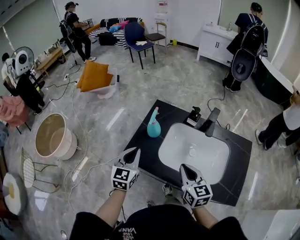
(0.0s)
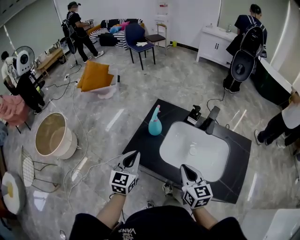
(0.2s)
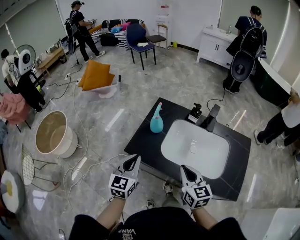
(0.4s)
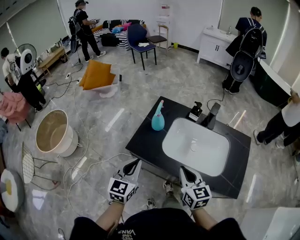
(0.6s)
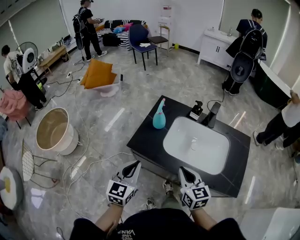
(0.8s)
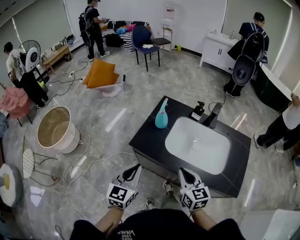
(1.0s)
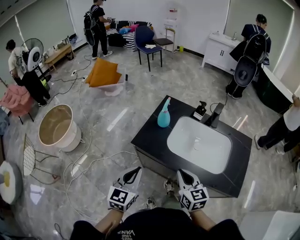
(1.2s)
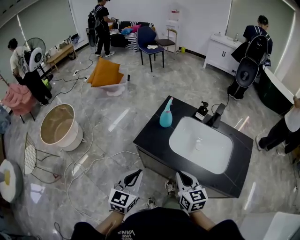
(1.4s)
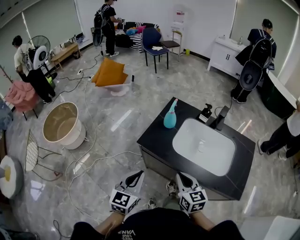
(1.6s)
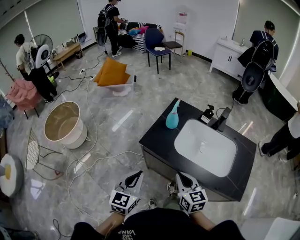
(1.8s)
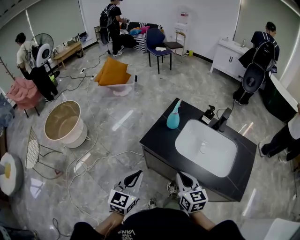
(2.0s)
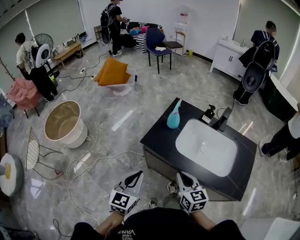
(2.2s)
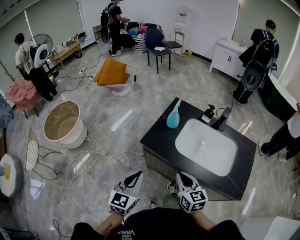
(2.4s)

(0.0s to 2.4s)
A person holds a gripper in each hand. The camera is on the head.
0.0s - 1.2s: The right gripper goes some 10 cm backward and to the left. The left gripper shifts about 20 cm backward.
1.2s - 2.4s: There are only small adjustments of the grippers.

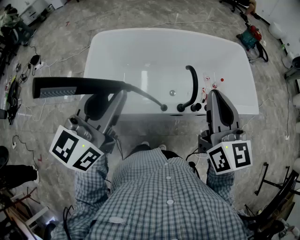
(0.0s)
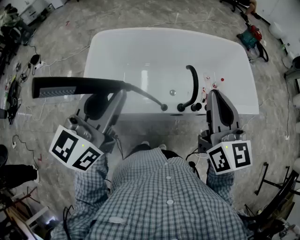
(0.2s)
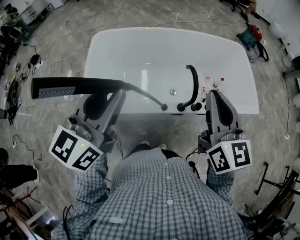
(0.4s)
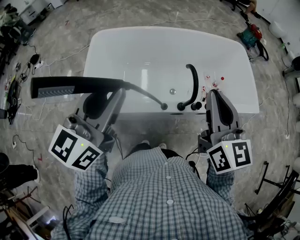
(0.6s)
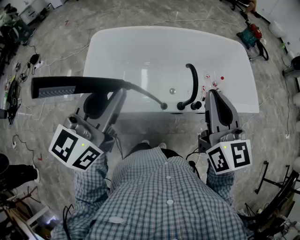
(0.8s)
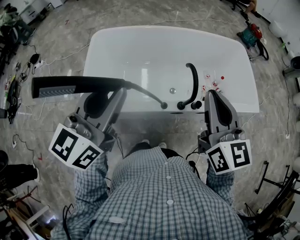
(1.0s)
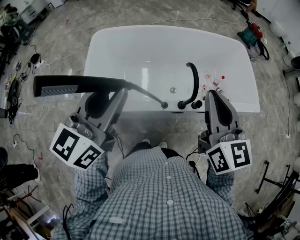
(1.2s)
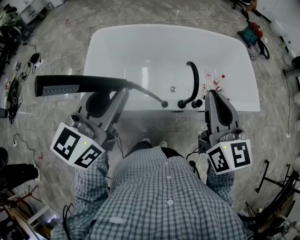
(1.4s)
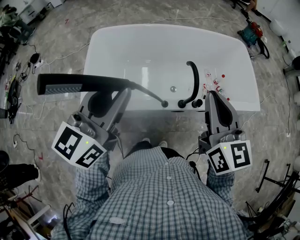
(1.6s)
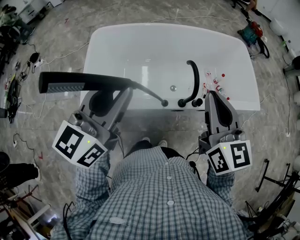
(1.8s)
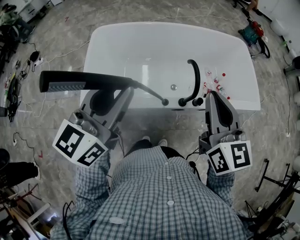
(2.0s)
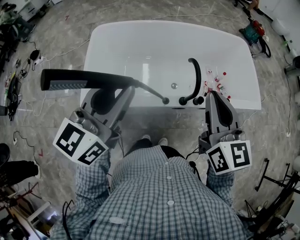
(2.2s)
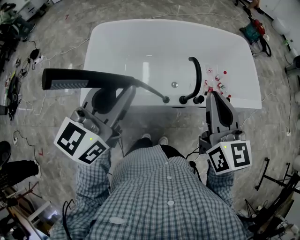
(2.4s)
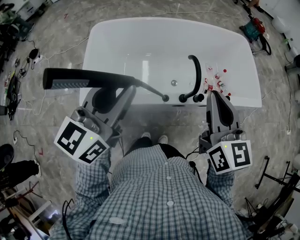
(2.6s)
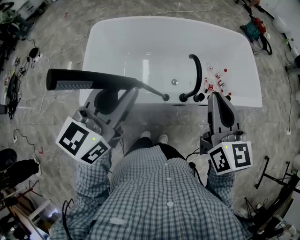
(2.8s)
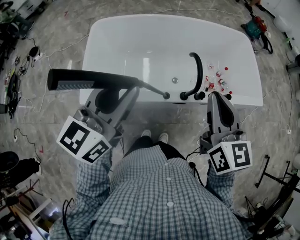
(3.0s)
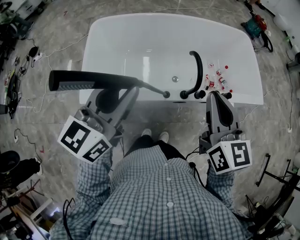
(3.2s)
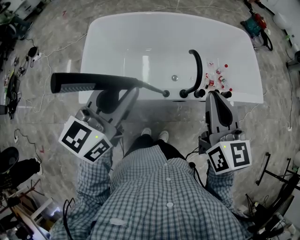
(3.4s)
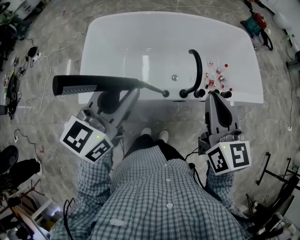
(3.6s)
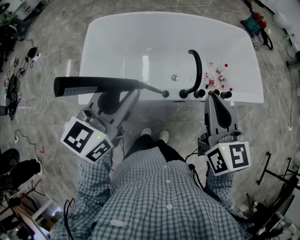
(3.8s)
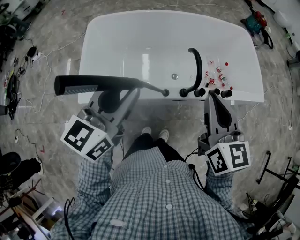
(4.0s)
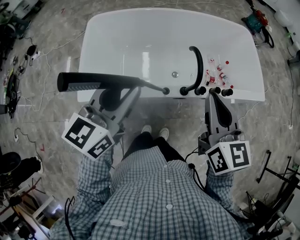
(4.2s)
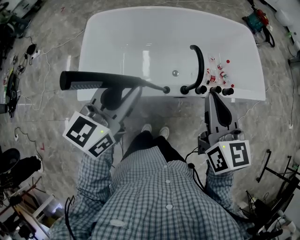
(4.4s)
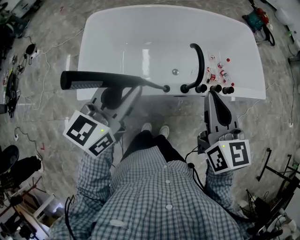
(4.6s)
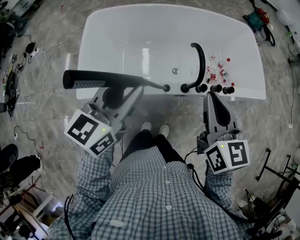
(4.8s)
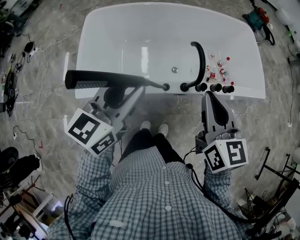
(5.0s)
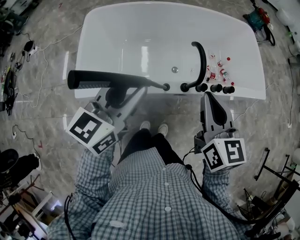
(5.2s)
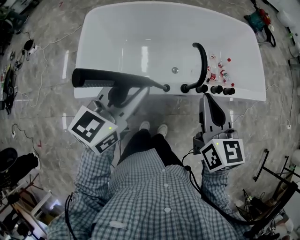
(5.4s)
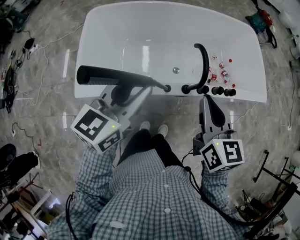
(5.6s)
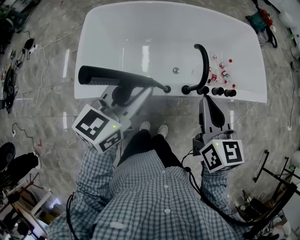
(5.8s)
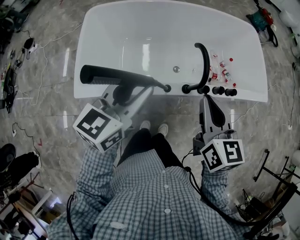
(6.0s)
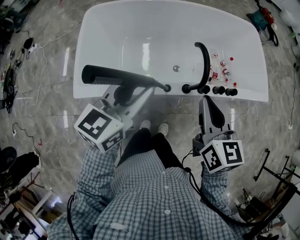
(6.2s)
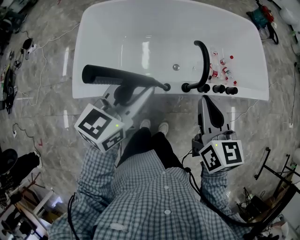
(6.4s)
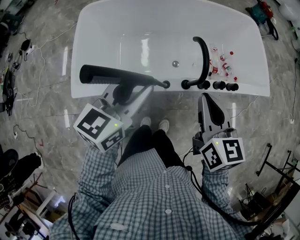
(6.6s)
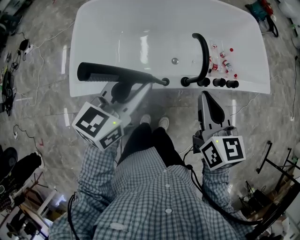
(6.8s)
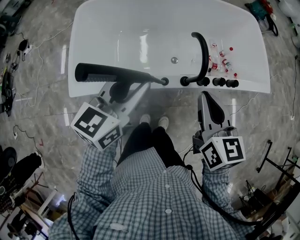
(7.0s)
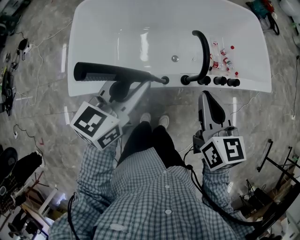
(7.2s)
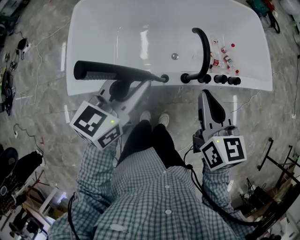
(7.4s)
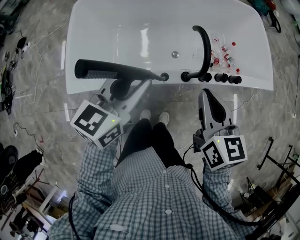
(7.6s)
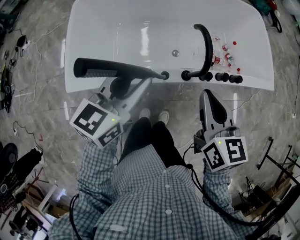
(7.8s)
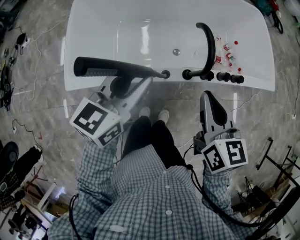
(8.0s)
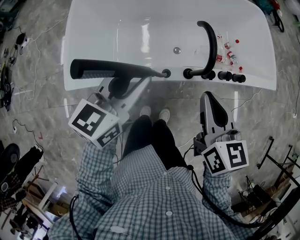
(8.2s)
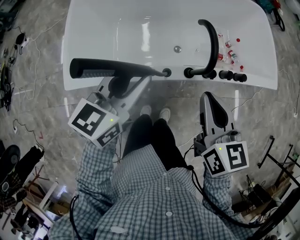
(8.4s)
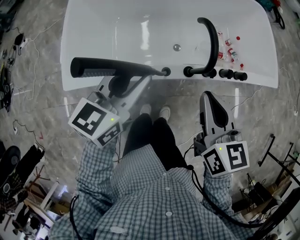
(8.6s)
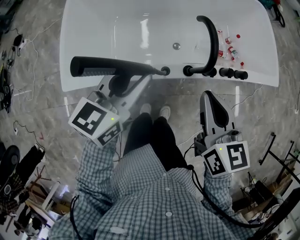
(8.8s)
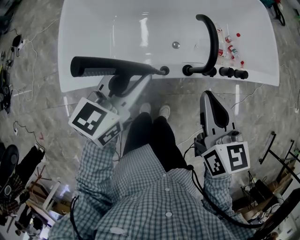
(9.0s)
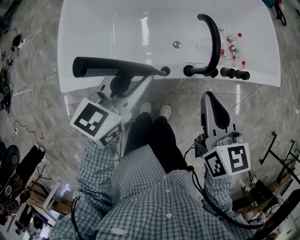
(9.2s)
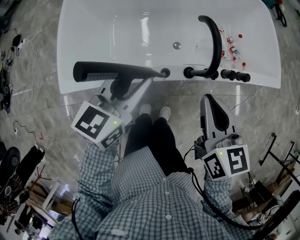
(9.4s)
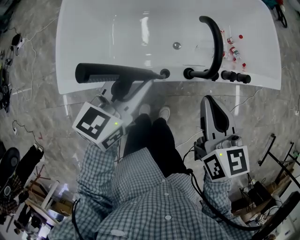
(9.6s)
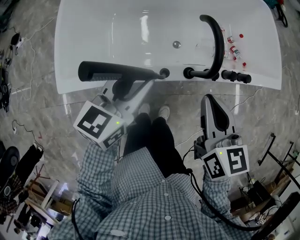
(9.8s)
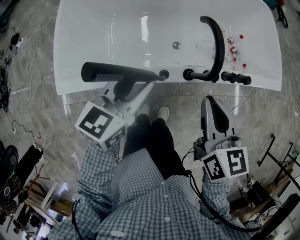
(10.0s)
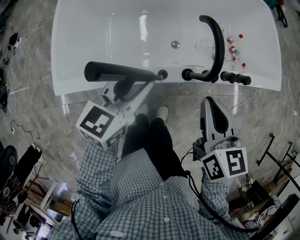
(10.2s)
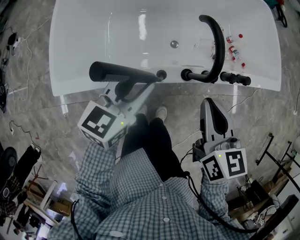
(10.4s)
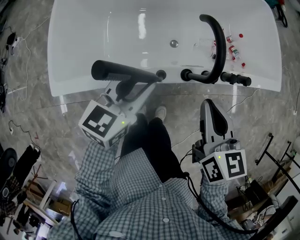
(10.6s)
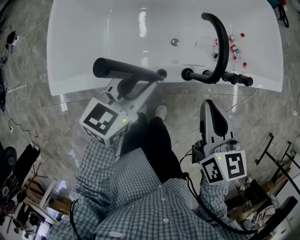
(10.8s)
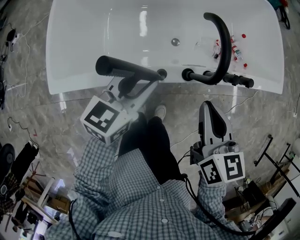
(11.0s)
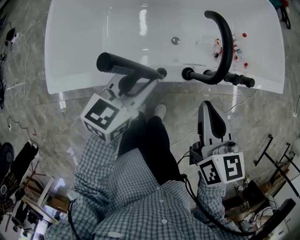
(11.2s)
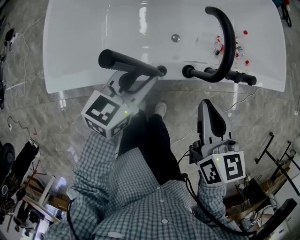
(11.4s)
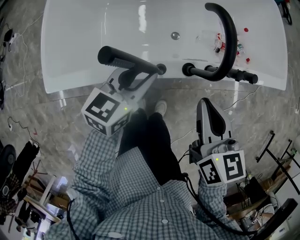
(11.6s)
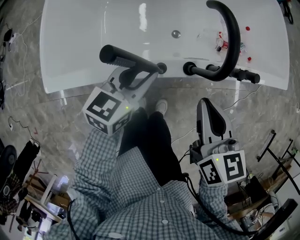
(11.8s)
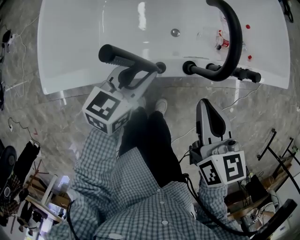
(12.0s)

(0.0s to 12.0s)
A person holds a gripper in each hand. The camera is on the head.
0.0s - 3.0s: The grippers move only a little.
3.0s - 4.4s: The left gripper is displaced downward by about 5 cm.
4.4s - 6.0s: Both grippers travel together downward, about 5 cm.
6.0s - 7.6s: The left gripper goes approximately 5 cm downward. Meanwhile the right gripper changes place by roughly 5 cm.
7.6s - 9.0s: The left gripper shifts approximately 5 cm downward.
9.0s - 10.4s: The right gripper changes place by approximately 5 cm. Meanwhile the left gripper goes some 5 cm downward.
10.4s - 12.0s: The left gripper goes roughly 10 cm downward. The right gripper travels downward by roughly 5 cm.

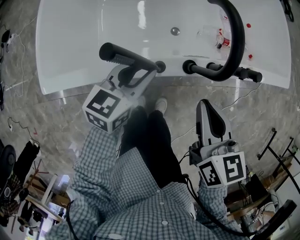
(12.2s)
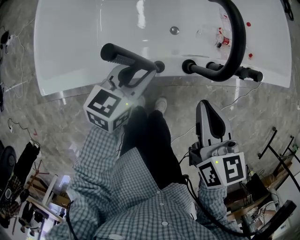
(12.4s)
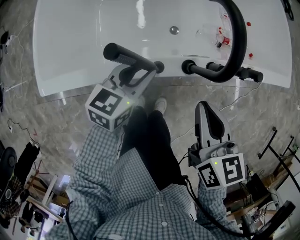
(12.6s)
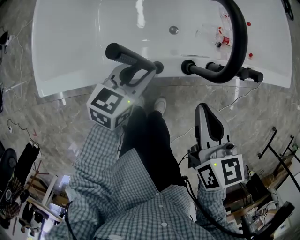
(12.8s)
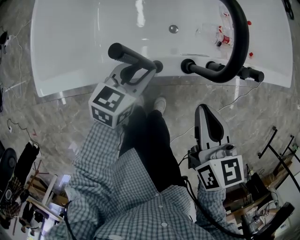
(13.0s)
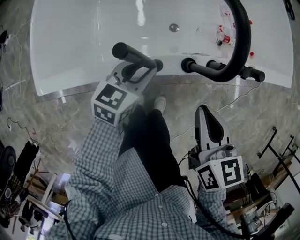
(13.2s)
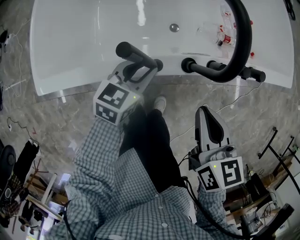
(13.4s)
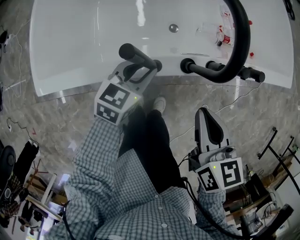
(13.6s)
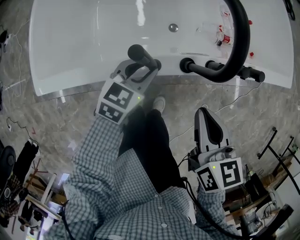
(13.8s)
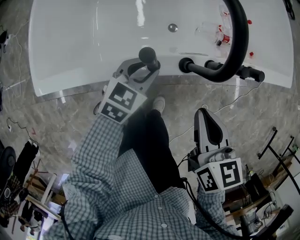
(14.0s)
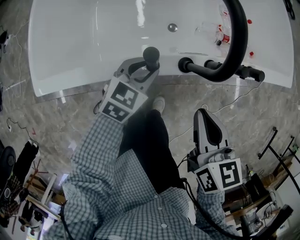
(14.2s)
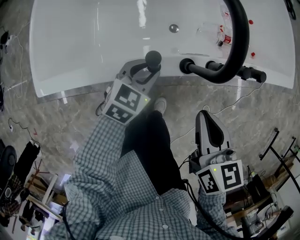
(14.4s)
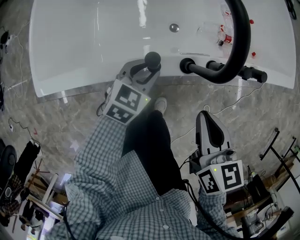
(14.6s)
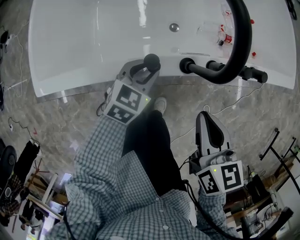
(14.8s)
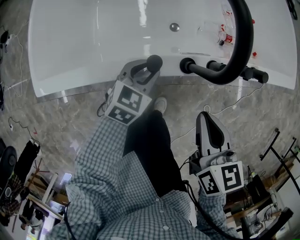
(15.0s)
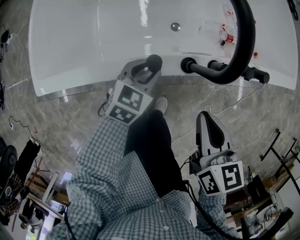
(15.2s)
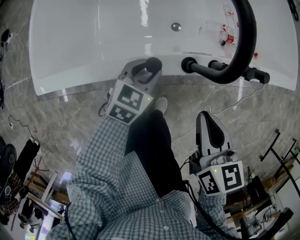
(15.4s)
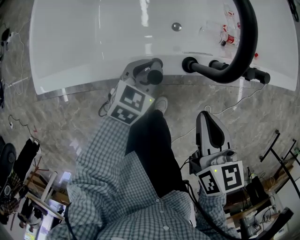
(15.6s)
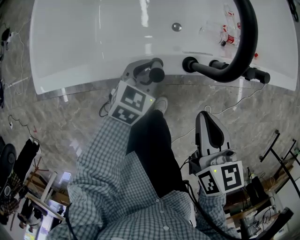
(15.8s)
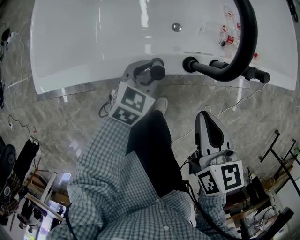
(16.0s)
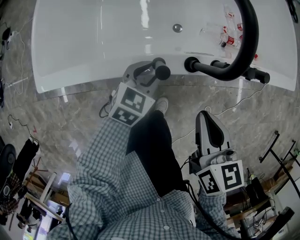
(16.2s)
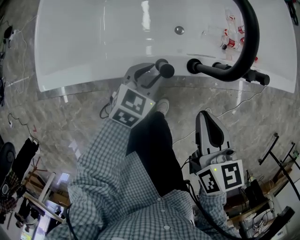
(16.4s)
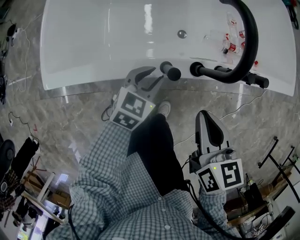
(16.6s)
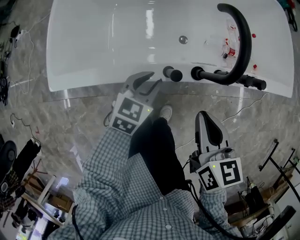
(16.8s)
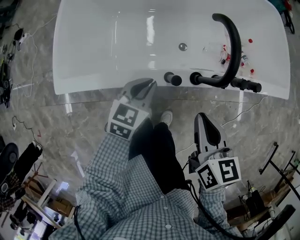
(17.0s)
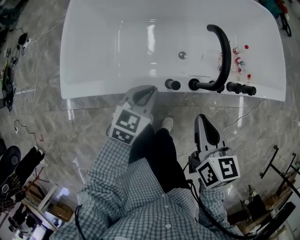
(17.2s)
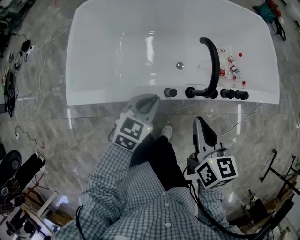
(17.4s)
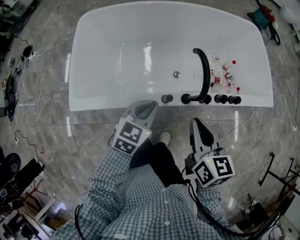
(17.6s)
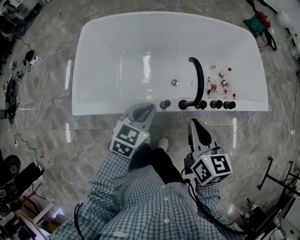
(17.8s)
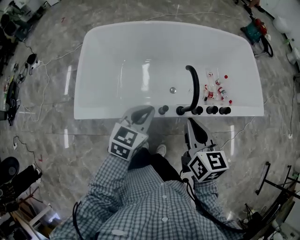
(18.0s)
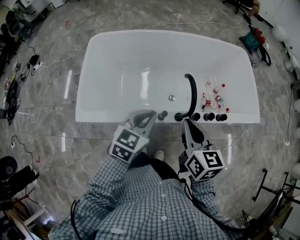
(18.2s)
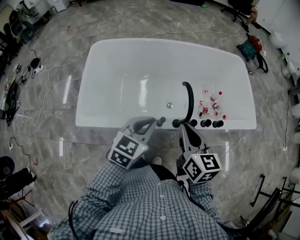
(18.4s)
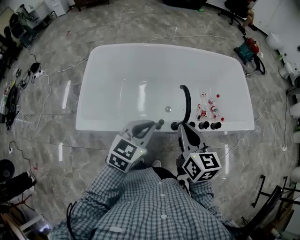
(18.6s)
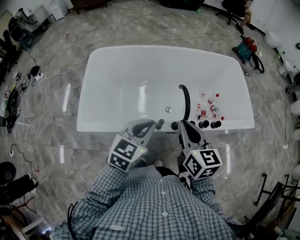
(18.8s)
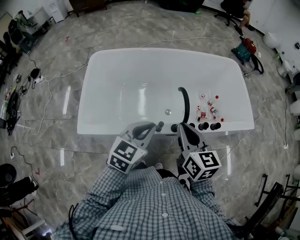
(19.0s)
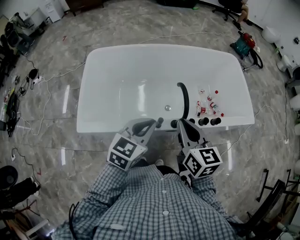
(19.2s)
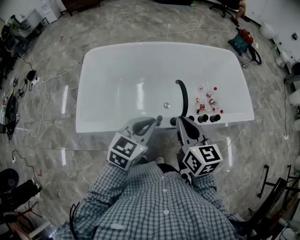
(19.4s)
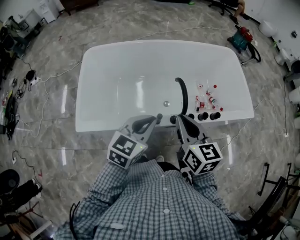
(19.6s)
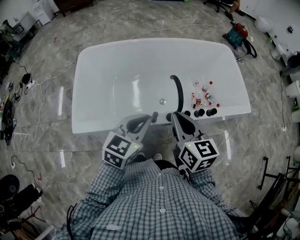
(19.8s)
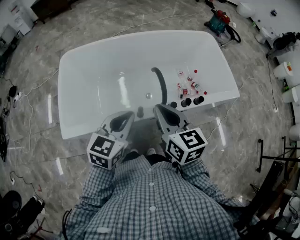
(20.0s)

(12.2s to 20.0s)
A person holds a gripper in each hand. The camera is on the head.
12.2s - 13.8s: The left gripper shifts approximately 10 cm downward.
13.8s - 15.4s: The grippers move only a little.
15.4s - 16.8s: The right gripper shifts by some 5 cm; the left gripper is displaced upward by approximately 5 cm.
16.8s - 18.4s: Both grippers move upward, about 25 cm. The left gripper closes.
18.4s - 20.0s: The grippers move only a little.

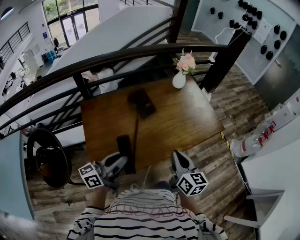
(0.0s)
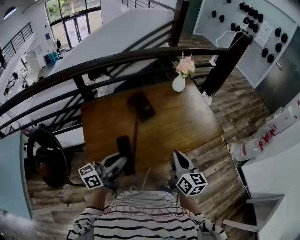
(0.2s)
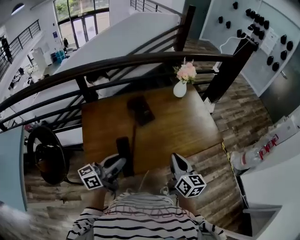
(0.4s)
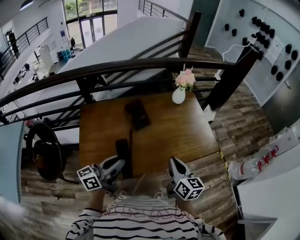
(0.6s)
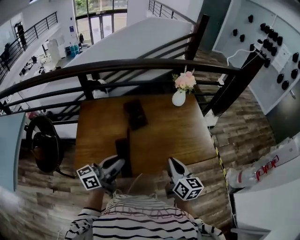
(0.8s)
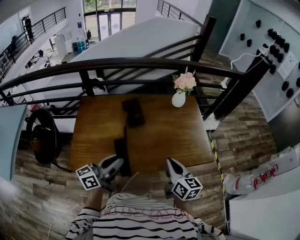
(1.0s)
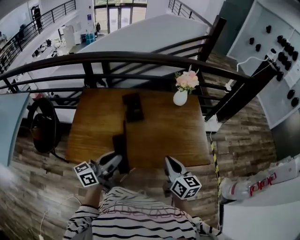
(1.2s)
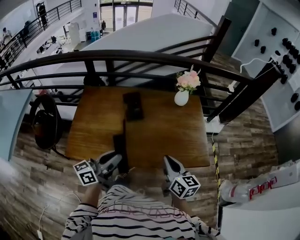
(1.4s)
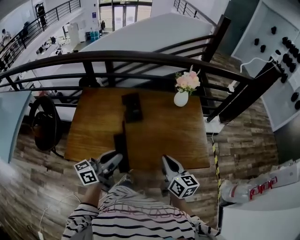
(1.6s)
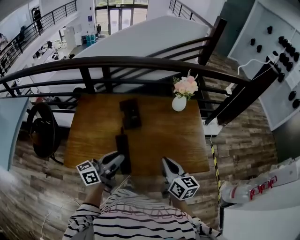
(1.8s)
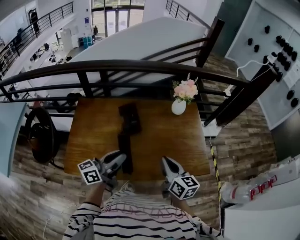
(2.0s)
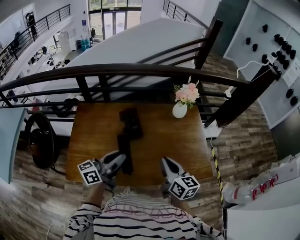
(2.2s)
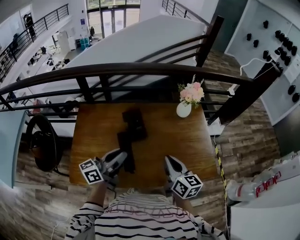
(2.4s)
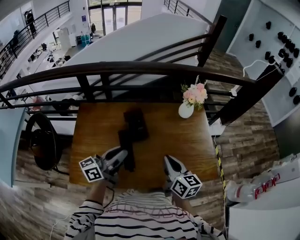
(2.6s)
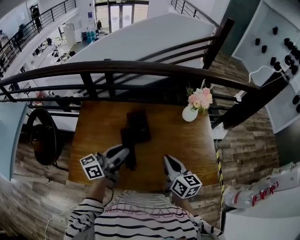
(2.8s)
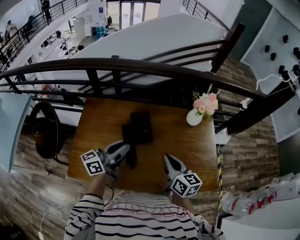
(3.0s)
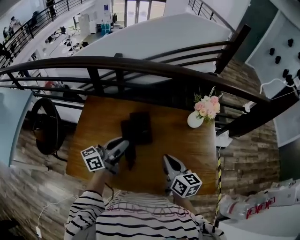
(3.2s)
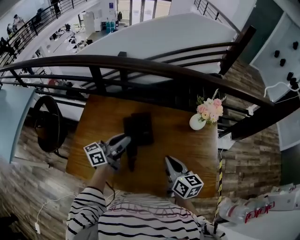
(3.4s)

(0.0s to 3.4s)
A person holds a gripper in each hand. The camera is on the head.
0.0s - 1.6s: The right gripper ends up about 20 cm from where it was, and swivels roughly 30 degrees, while the left gripper shifts by some 25 cm, and changes its angle by approximately 20 degrees.
1.6s - 3.4s: The two grippers go approximately 25 cm forward.
